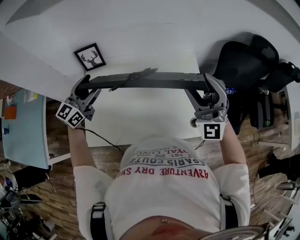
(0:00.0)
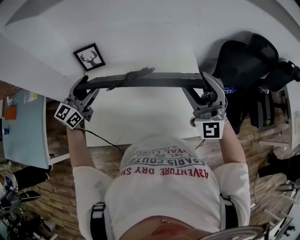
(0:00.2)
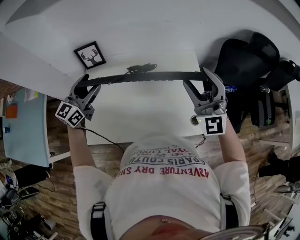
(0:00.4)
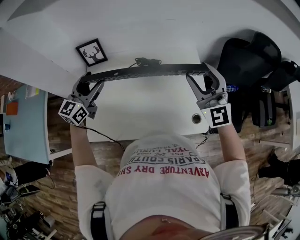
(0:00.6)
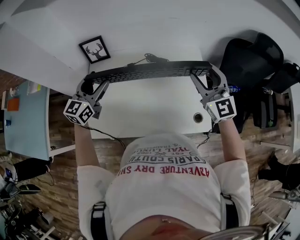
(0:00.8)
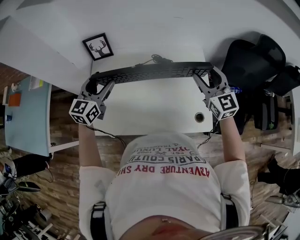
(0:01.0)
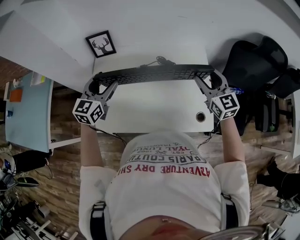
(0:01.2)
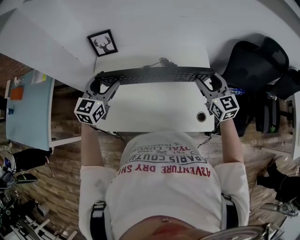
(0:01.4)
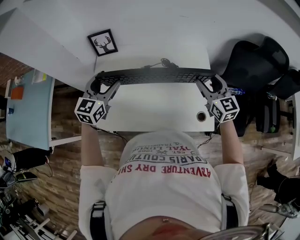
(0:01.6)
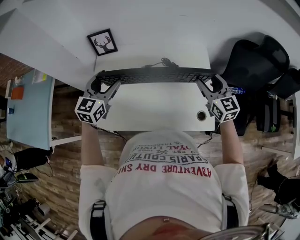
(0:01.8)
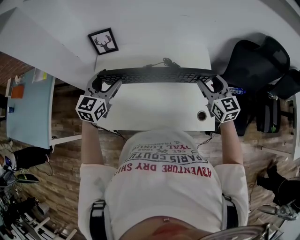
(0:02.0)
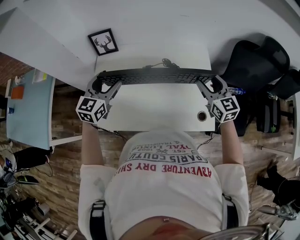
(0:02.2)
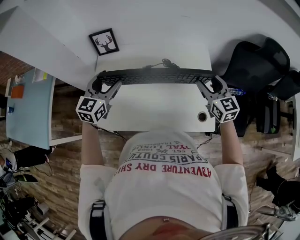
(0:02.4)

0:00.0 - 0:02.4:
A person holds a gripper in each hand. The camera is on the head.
0:00.0 - 0:01.2: The right gripper heads downward and forward, covering roughly 15 cm, and twists about 40 degrees clockwise, seen from behind, while the left gripper ends up some 5 cm from where it was.
0:01.2 - 0:02.4: The grippers stay close to where they were, moving slightly.

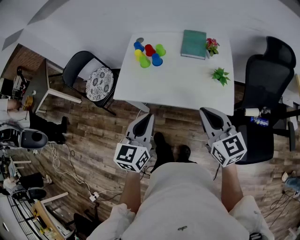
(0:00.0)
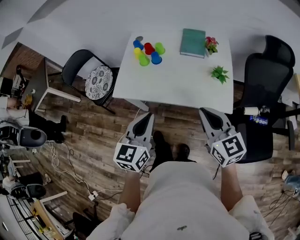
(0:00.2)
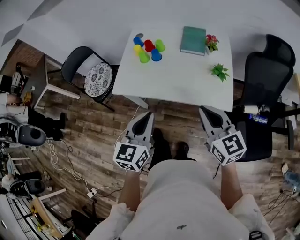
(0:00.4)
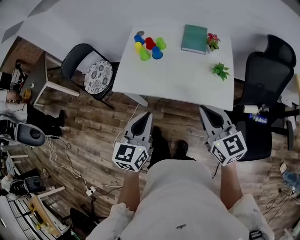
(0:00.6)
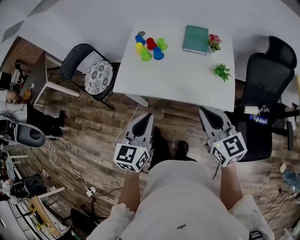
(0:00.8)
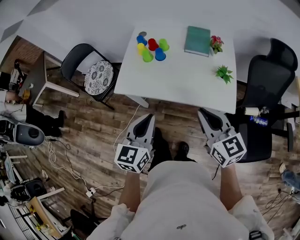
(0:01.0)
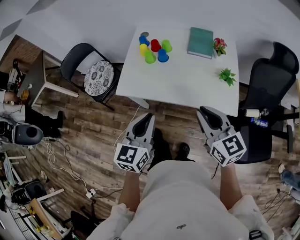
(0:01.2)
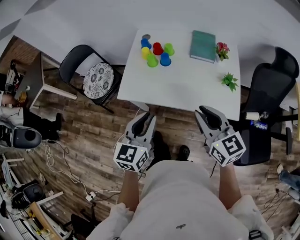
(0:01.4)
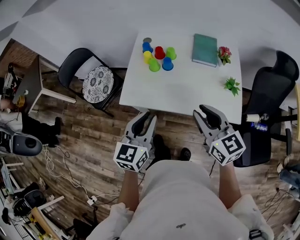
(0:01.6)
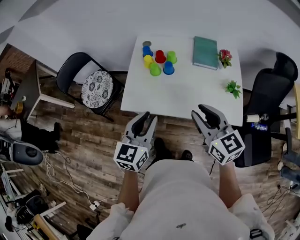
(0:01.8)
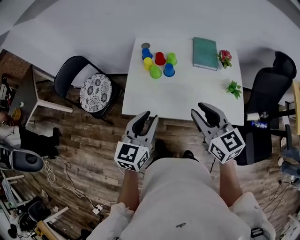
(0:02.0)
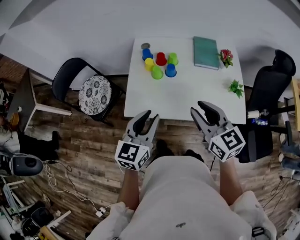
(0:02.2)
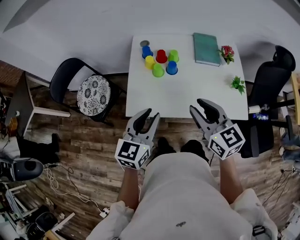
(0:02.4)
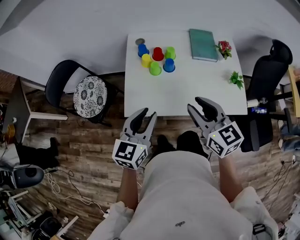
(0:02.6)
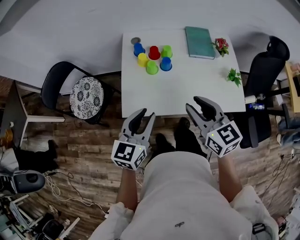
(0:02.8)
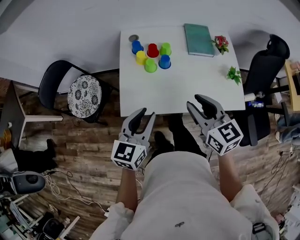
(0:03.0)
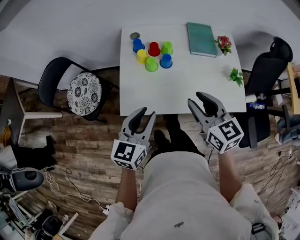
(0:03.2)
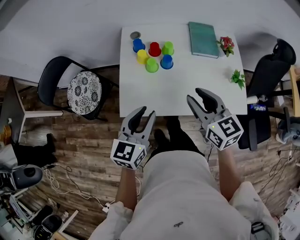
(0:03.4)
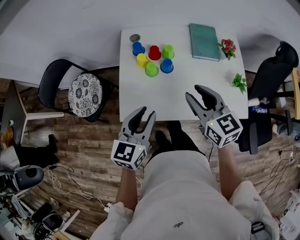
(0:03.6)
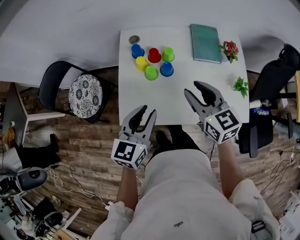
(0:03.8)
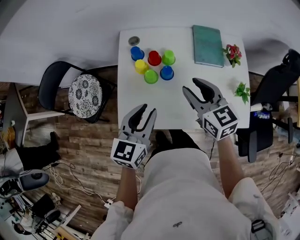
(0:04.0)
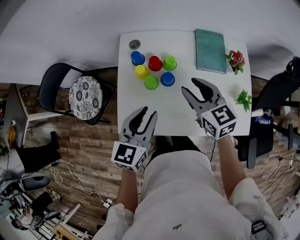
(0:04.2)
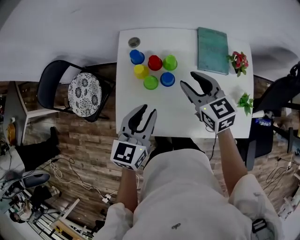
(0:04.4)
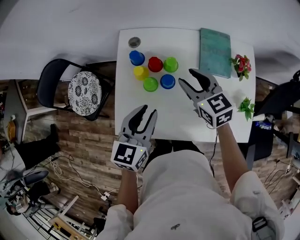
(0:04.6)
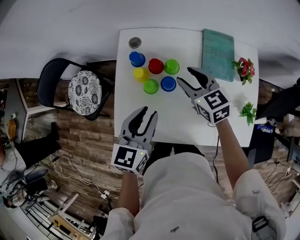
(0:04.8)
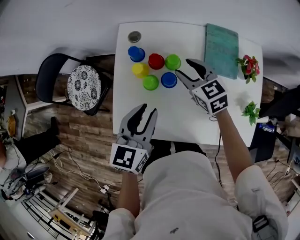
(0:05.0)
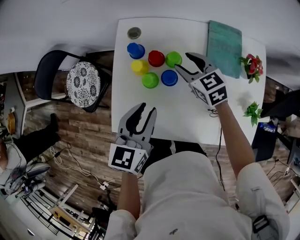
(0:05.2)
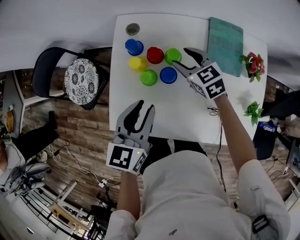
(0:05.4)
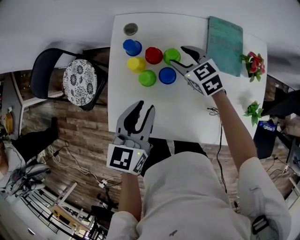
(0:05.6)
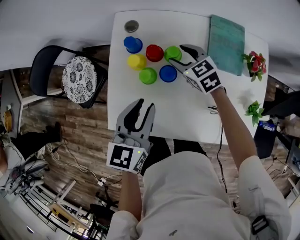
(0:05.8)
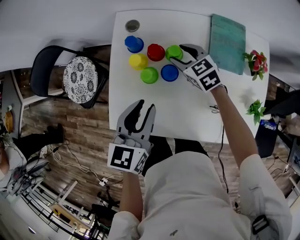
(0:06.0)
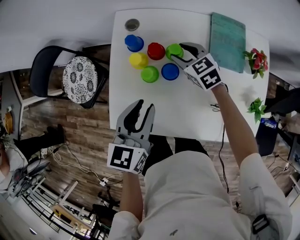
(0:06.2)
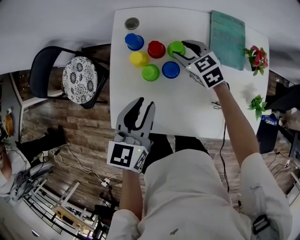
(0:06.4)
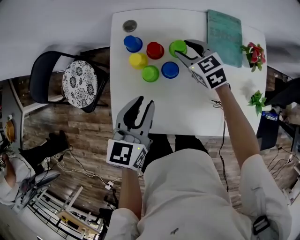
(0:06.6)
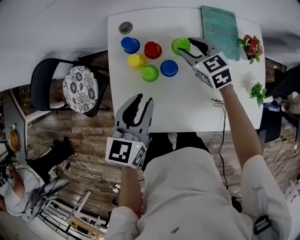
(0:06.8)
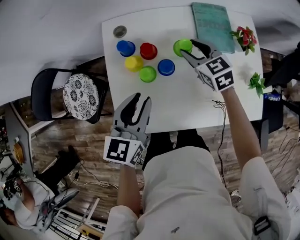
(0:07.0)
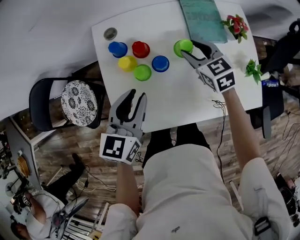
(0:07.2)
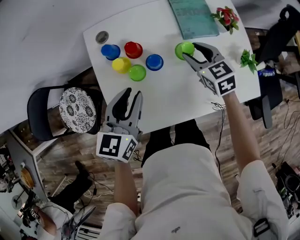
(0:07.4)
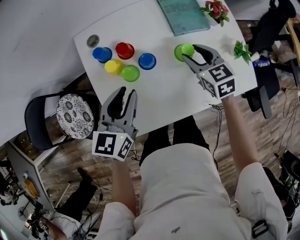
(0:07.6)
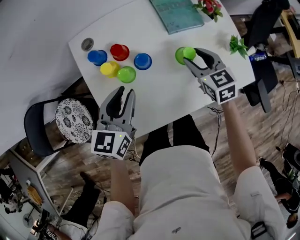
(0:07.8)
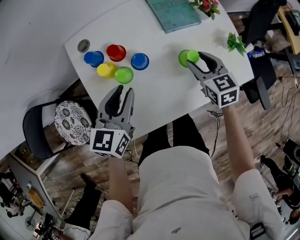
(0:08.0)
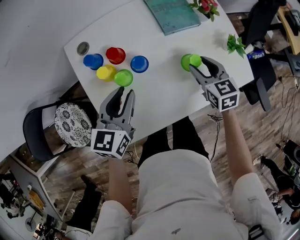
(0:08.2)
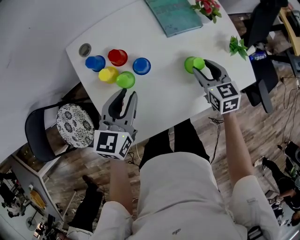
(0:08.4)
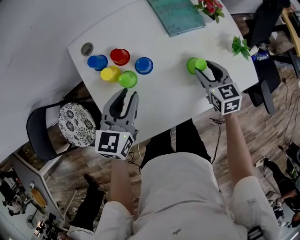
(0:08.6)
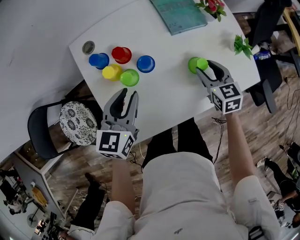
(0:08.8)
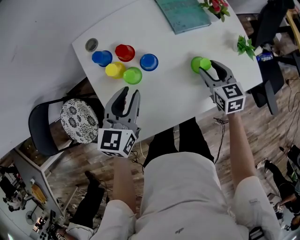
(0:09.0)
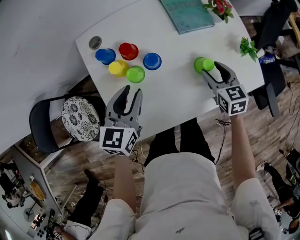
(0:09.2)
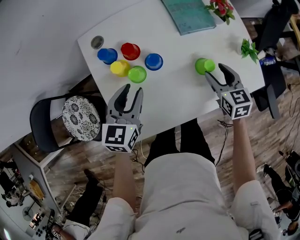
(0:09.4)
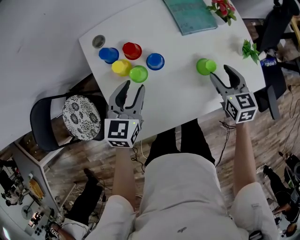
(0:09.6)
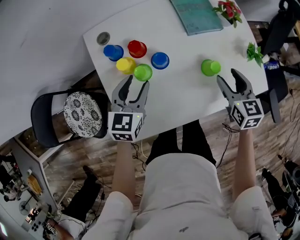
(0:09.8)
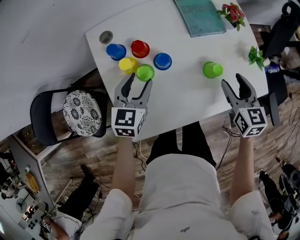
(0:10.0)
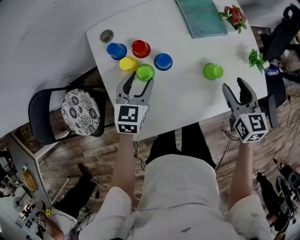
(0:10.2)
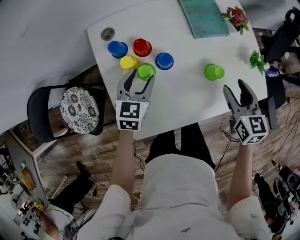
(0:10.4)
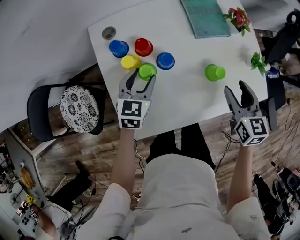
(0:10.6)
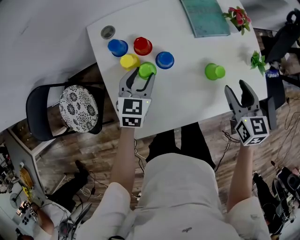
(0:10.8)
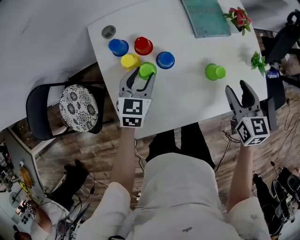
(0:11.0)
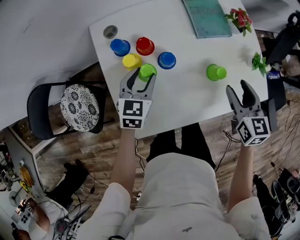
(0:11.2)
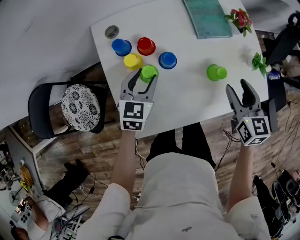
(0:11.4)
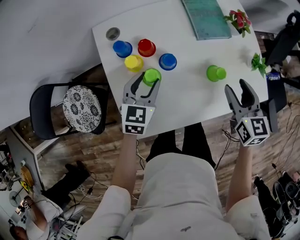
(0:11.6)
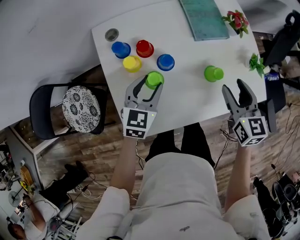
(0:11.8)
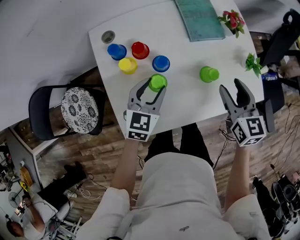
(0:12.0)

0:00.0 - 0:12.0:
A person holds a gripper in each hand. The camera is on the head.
0:00.0 - 0:01.6: The grippers both shift to the left and forward by about 10 cm. The right gripper opens.
0:01.6 - 0:03.0: The left gripper shifts approximately 10 cm forward and to the left. Meanwhile the right gripper goes some 10 cm to the left and forward.
0:03.0 - 0:04.4: The two grippers go roughly 20 cm forward.
0:04.4 - 0:06.0: The right gripper travels downward and forward by about 20 cm.
0:06.0 - 0:07.6: The right gripper shifts by approximately 20 cm, and swivels roughly 40 degrees. The left gripper turns by some 30 degrees.
0:07.6 - 0:09.0: The right gripper moves to the right and backward, about 10 cm.
0:09.0 - 0:10.4: The left gripper moves downward, approximately 5 cm, and opens up; the right gripper moves upward, some 10 cm.
0:10.4 - 0:12.0: The left gripper is displaced to the right by approximately 5 cm.

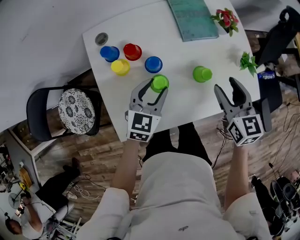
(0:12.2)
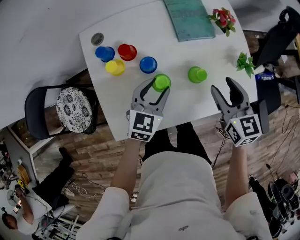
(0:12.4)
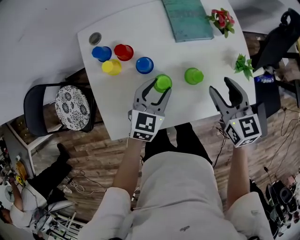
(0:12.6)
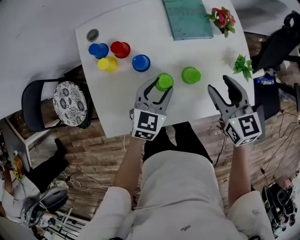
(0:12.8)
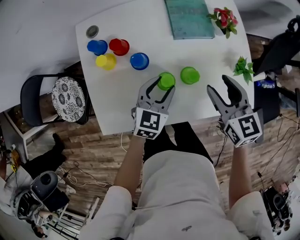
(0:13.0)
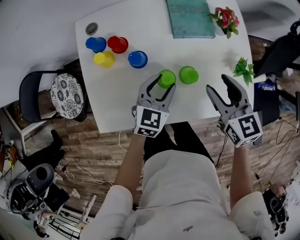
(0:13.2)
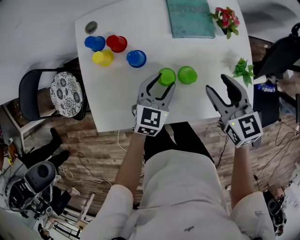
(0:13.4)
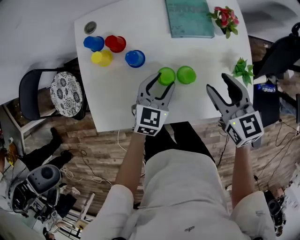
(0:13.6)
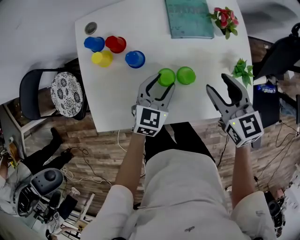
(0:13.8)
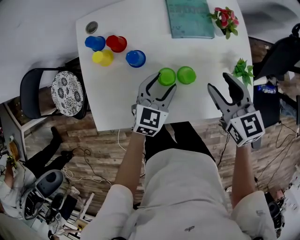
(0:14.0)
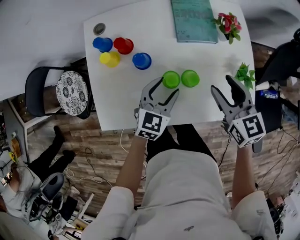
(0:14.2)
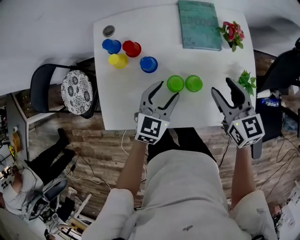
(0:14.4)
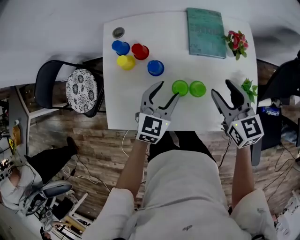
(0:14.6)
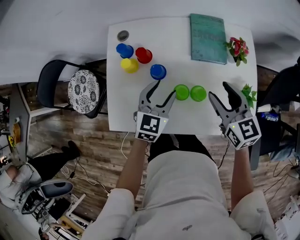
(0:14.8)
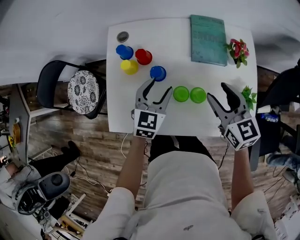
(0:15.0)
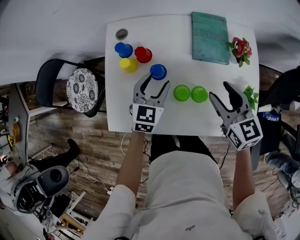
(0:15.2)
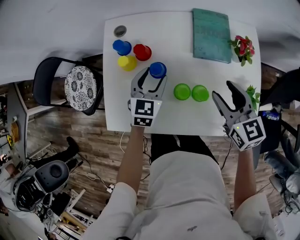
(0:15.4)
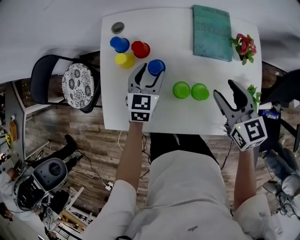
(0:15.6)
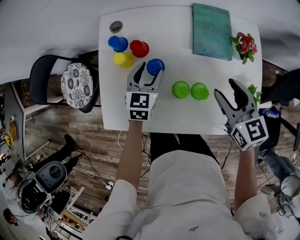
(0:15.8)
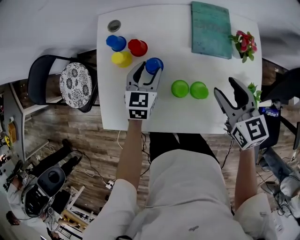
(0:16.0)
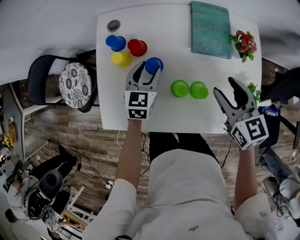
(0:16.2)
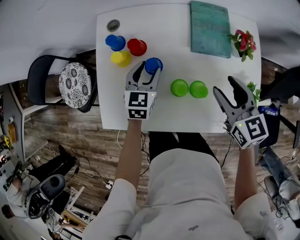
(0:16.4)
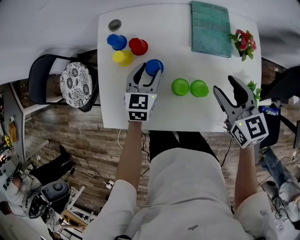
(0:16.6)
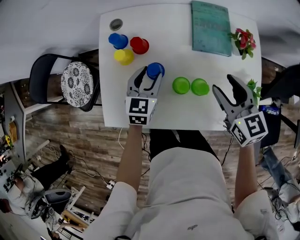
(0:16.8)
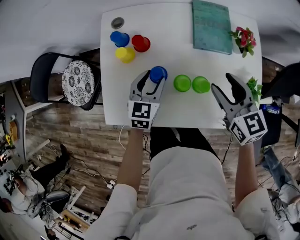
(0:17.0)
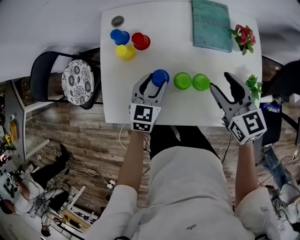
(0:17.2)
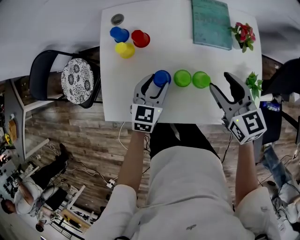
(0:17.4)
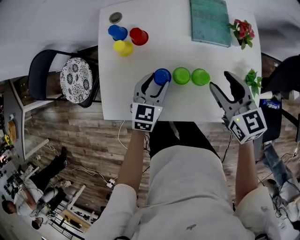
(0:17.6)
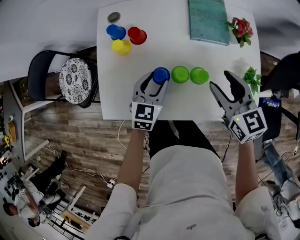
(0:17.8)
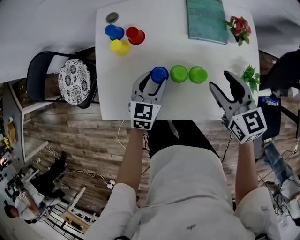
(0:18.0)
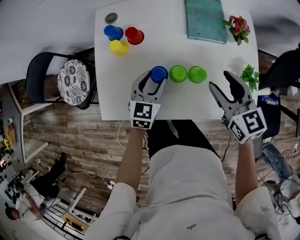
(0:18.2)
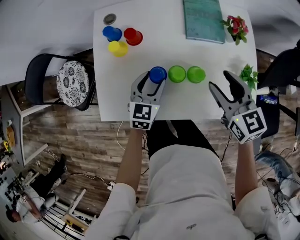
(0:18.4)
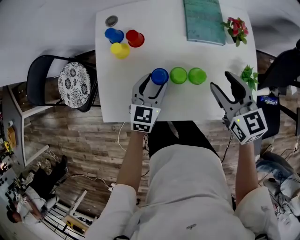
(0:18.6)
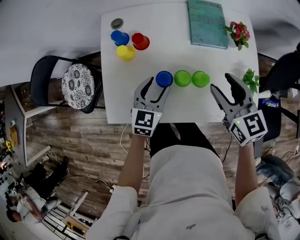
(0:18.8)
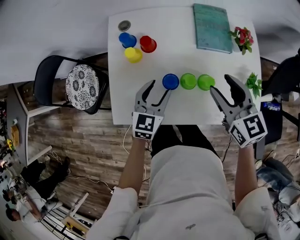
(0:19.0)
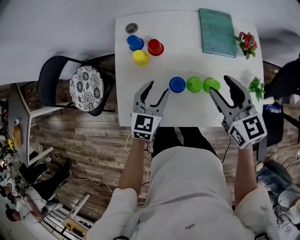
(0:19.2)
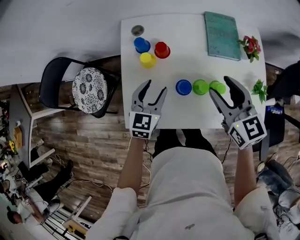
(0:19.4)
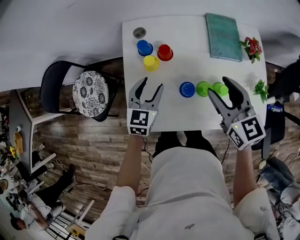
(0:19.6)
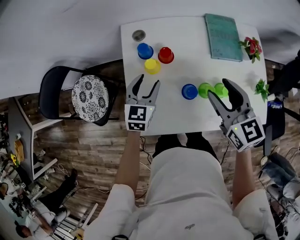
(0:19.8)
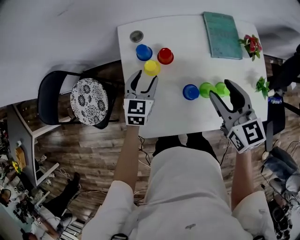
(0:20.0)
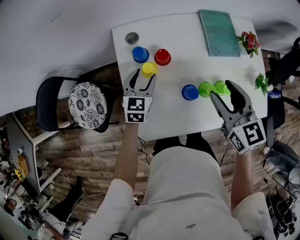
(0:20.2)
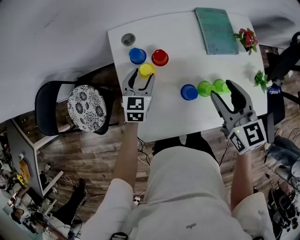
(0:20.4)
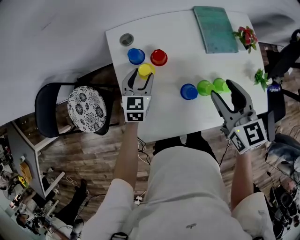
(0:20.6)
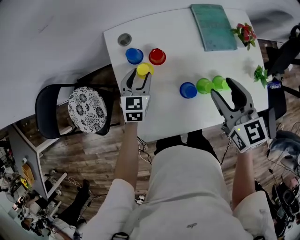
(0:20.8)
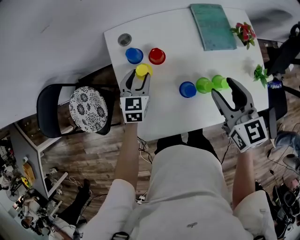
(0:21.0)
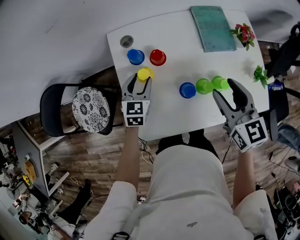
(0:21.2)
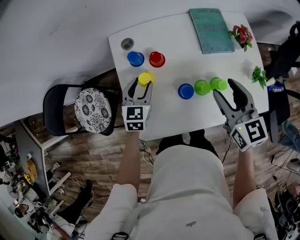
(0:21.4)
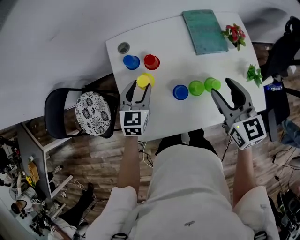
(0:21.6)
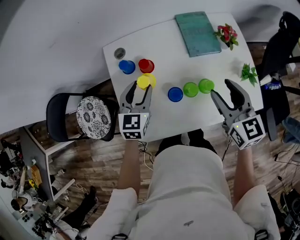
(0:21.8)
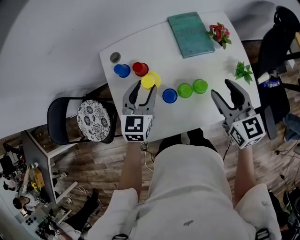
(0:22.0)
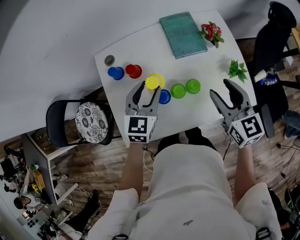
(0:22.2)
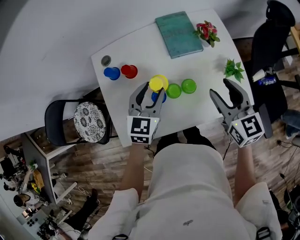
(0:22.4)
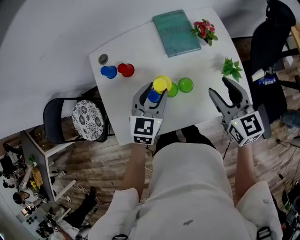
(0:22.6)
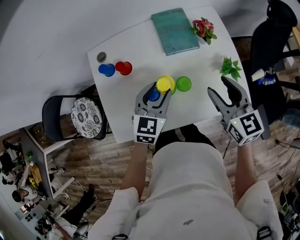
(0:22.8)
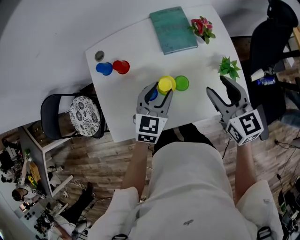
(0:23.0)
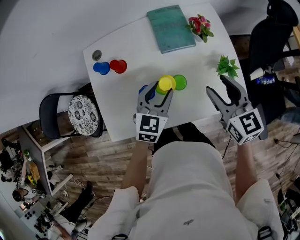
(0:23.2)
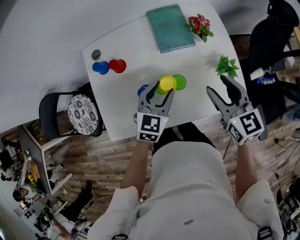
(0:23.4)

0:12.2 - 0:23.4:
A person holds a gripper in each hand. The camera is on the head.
0:12.2 - 0:13.8: The left gripper moves to the right, some 10 cm. The right gripper shifts by approximately 5 cm.
0:13.8 - 0:15.4: The right gripper shifts by approximately 5 cm; the left gripper moves to the left and forward, approximately 15 cm.
0:15.4 - 0:17.0: The grippers move only a little.
0:17.0 - 0:18.6: The left gripper shifts by about 5 cm.
0:18.6 - 0:20.2: The right gripper goes about 15 cm to the left, while the left gripper heads to the left and forward, covering some 20 cm.
0:20.2 - 0:21.8: The right gripper goes approximately 10 cm to the right; the left gripper goes roughly 10 cm upward and to the right.
0:21.8 - 0:23.4: The left gripper is displaced to the right by some 20 cm. Meanwhile the right gripper shifts some 10 cm to the right.
